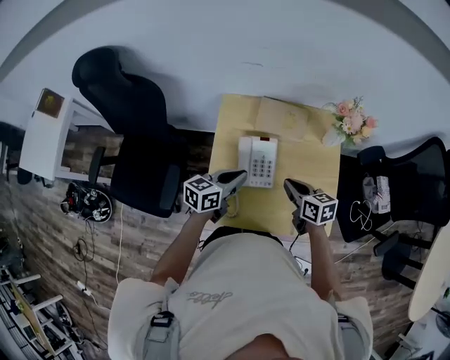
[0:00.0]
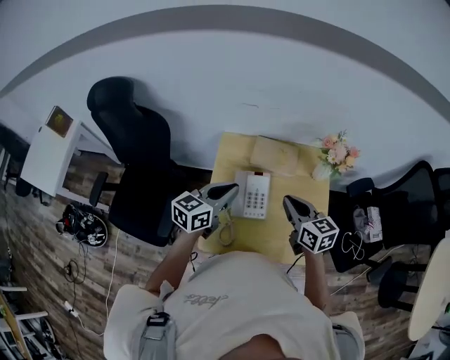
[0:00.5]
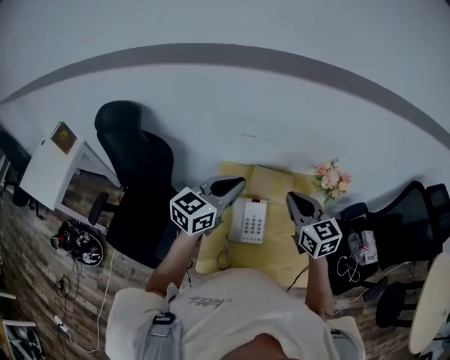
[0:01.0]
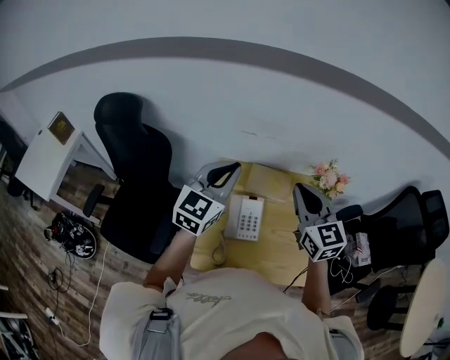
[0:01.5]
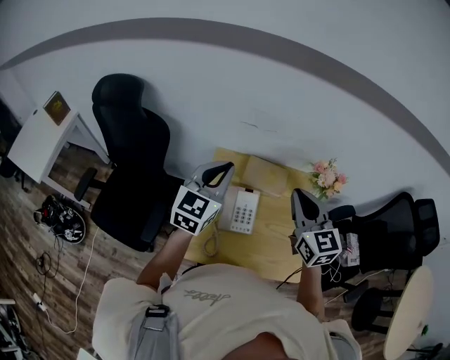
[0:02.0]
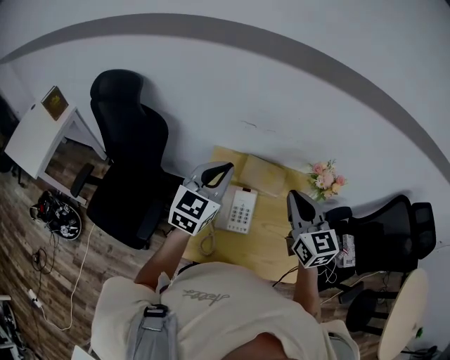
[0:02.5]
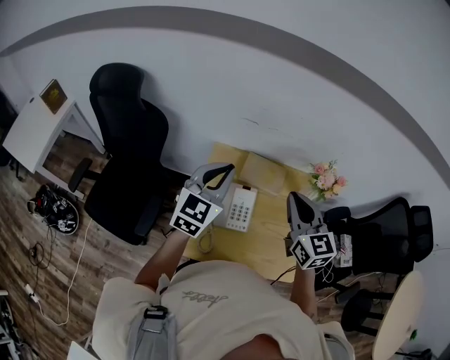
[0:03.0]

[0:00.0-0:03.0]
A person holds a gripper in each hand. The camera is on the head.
0:00.0 to 0:01.5: Both grippers move upward, approximately 30 cm. The right gripper changes its angle by some 50 degrees. The left gripper twists approximately 40 degrees clockwise, seen from behind.
0:01.5 to 0:03.0: The left gripper travels downward by roughly 5 cm.

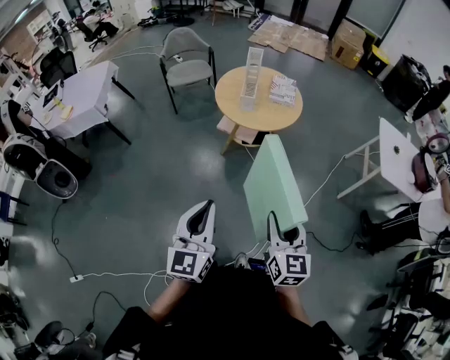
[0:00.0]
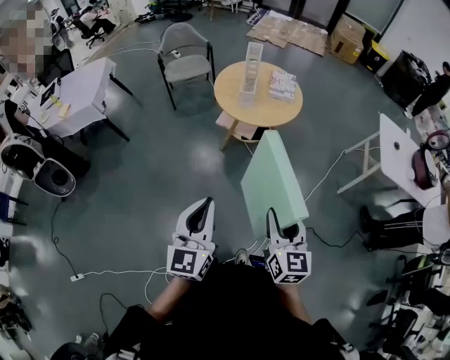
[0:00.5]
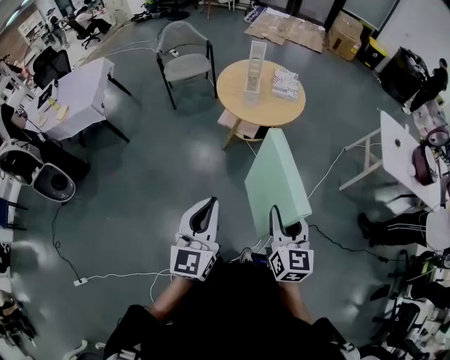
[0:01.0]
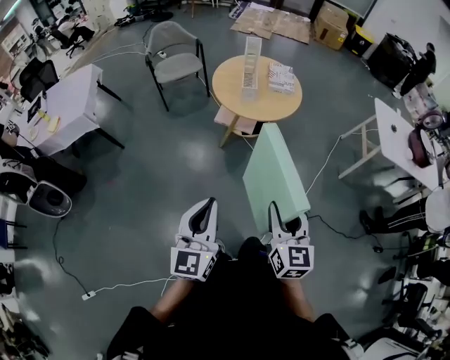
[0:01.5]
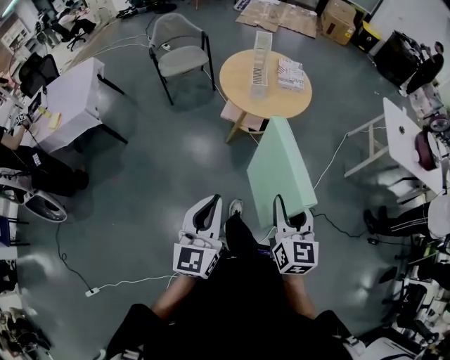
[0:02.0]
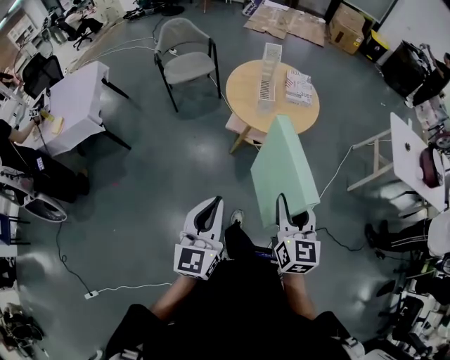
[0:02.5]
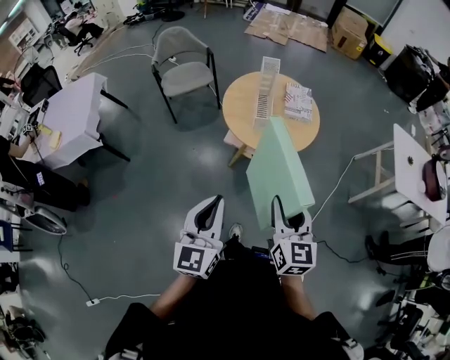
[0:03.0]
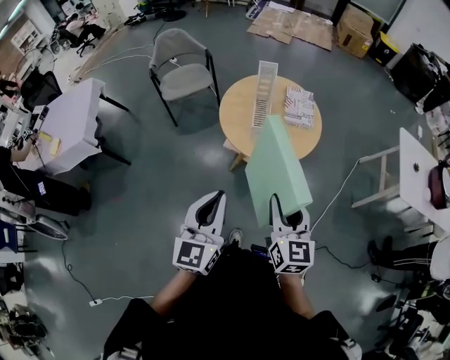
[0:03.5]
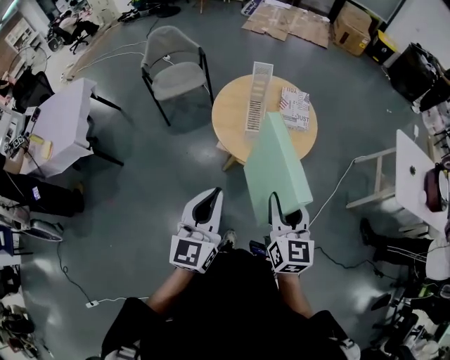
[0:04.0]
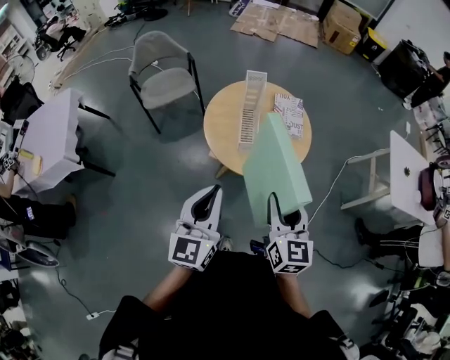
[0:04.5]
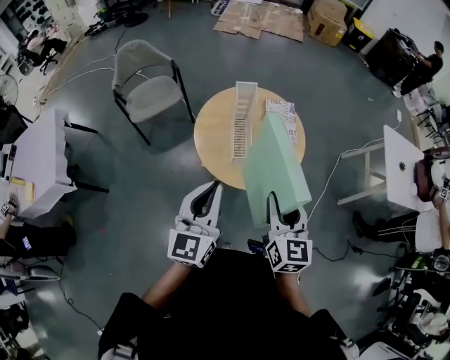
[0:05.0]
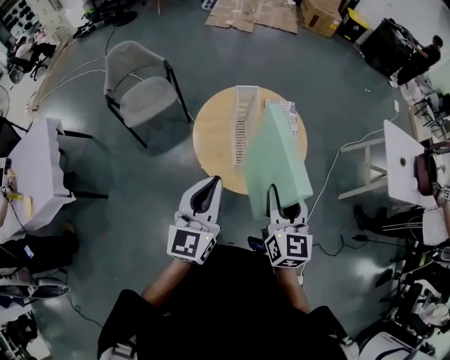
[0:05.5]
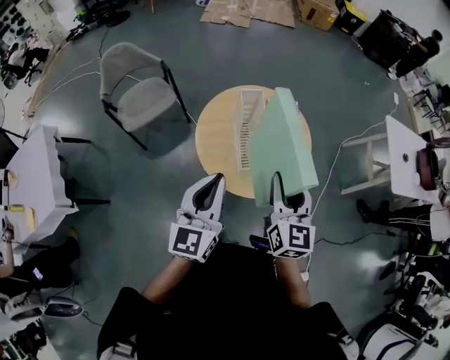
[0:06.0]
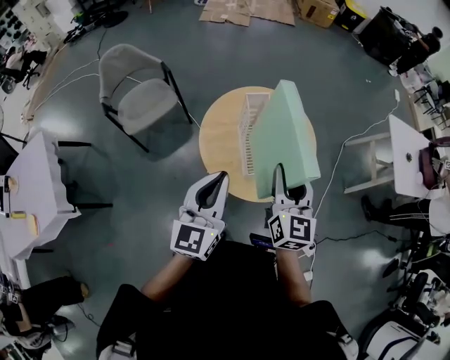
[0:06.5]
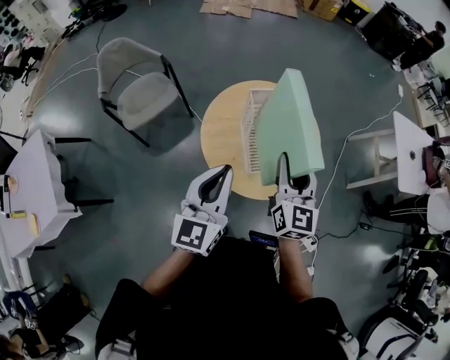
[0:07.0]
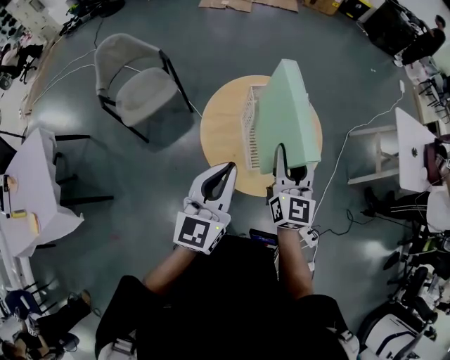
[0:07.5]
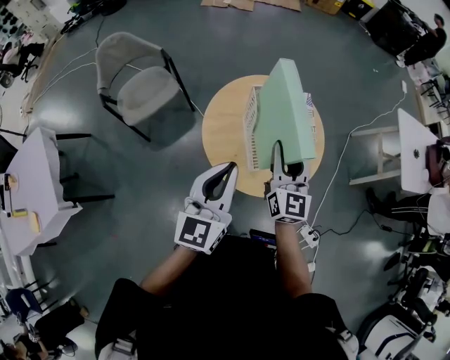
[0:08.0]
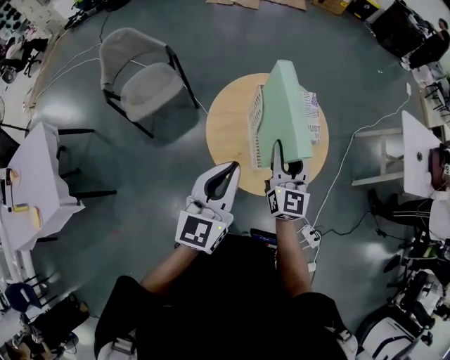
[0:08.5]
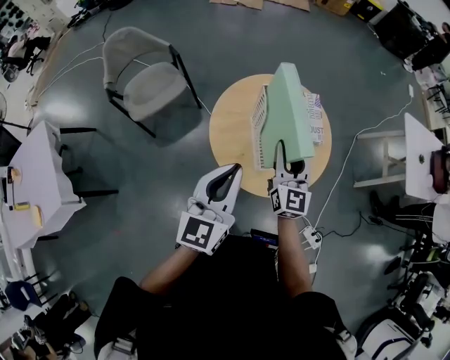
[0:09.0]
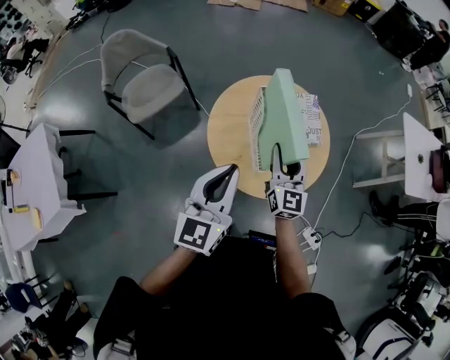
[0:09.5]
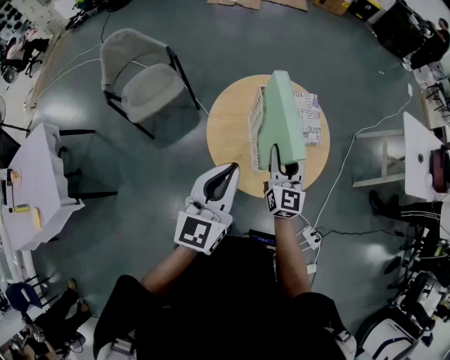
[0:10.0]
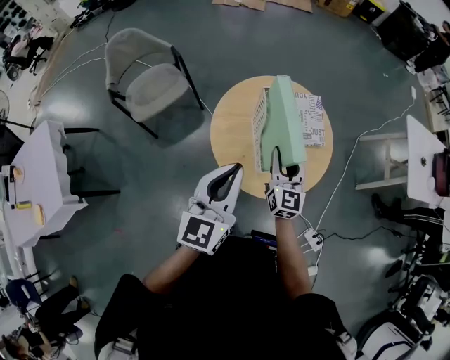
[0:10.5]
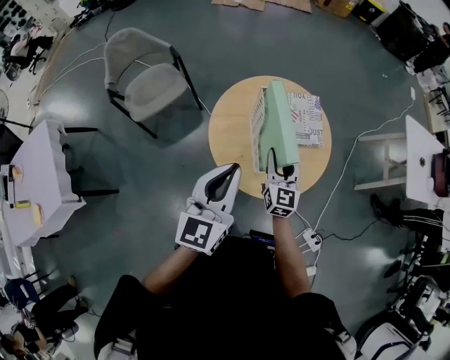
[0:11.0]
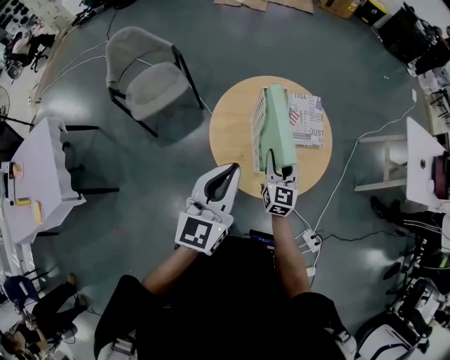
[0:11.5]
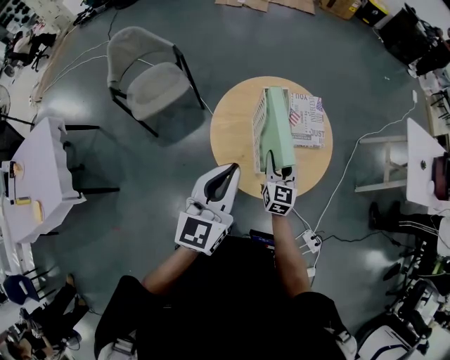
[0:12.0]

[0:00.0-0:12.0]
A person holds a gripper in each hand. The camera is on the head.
0:00.0 to 0:02.0: The two grippers go about 15 cm to the left and forward.
0:02.0 to 0:04.0: The two grippers go about 30 cm forward.
0:04.0 to 0:06.0: Both grippers move forward, some 25 cm.
0:06.0 to 0:08.0: The right gripper heads forward and downward, covering about 15 cm. The left gripper heads forward, covering approximately 5 cm.
0:08.0 to 0:10.0: The right gripper is displaced downward by some 5 cm.
0:10.0 to 0:12.0: The right gripper goes roughly 10 cm downward.

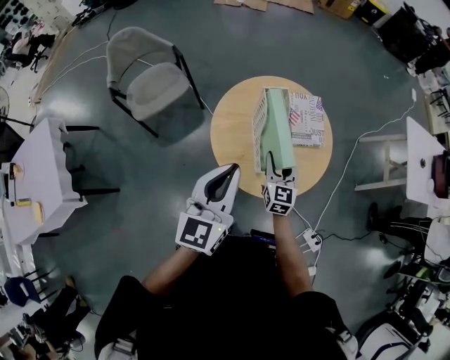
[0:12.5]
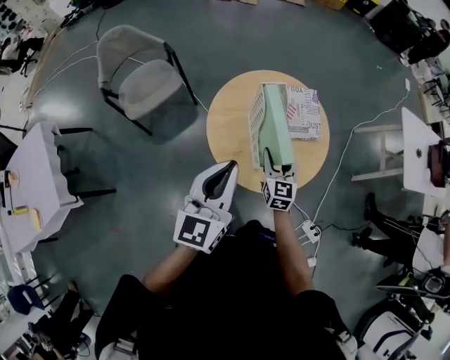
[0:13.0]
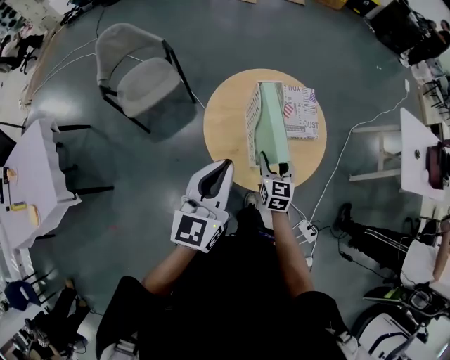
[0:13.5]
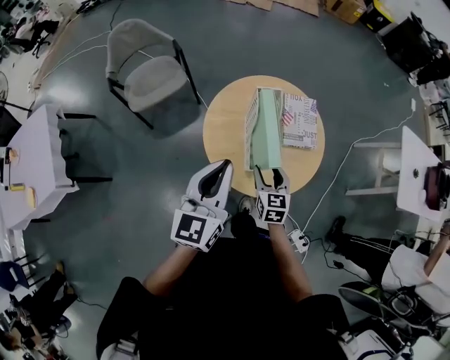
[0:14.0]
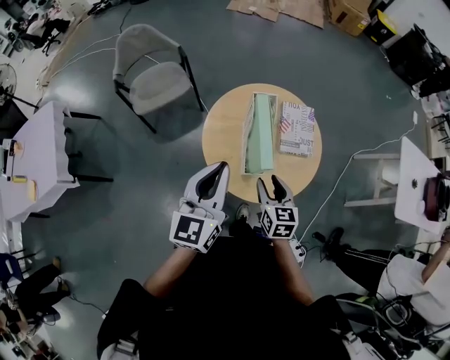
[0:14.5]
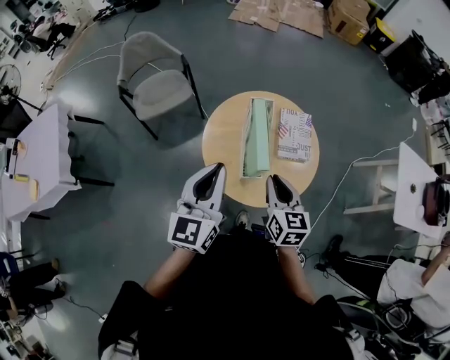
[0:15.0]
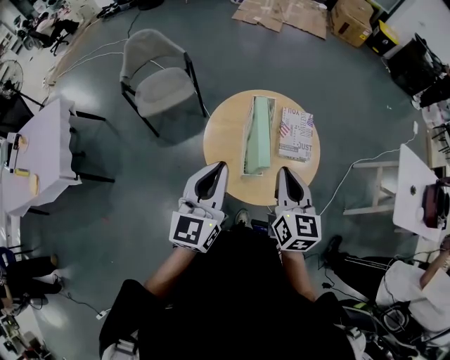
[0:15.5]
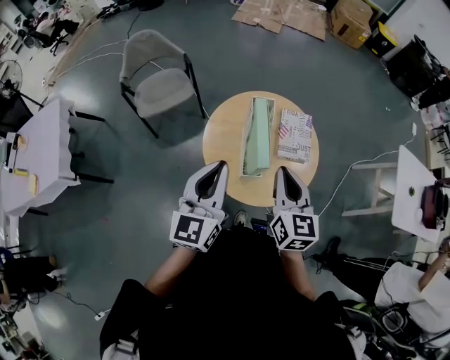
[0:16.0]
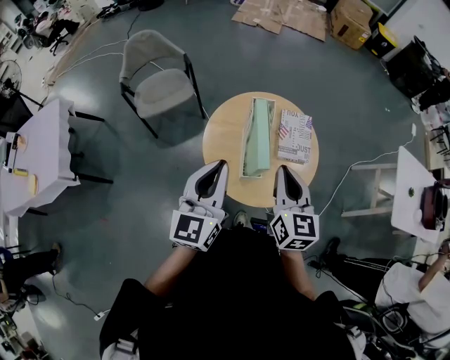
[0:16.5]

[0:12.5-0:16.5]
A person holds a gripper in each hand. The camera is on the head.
0:12.5 to 0:14.5: The right gripper travels backward by about 5 cm, and changes its angle by about 20 degrees.
0:14.5 to 0:16.5: The right gripper moves upward, roughly 15 cm, and closes.

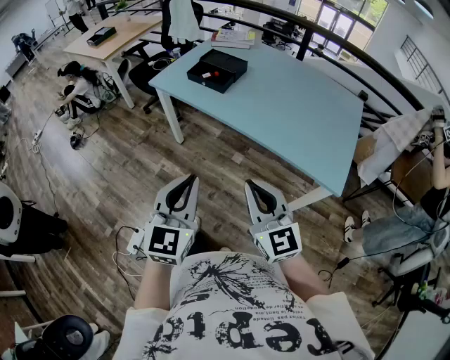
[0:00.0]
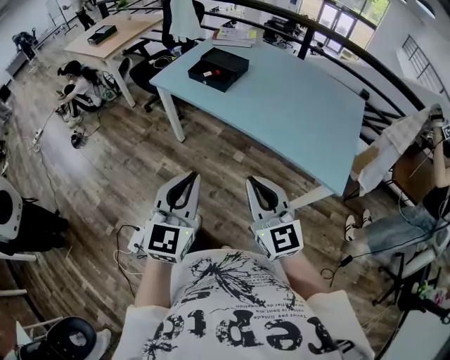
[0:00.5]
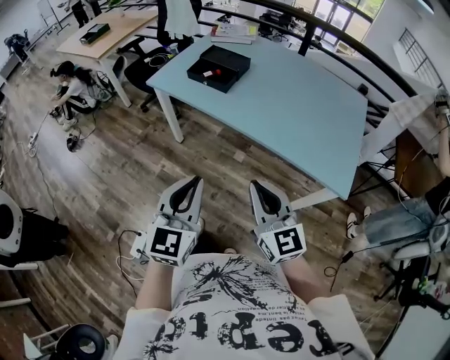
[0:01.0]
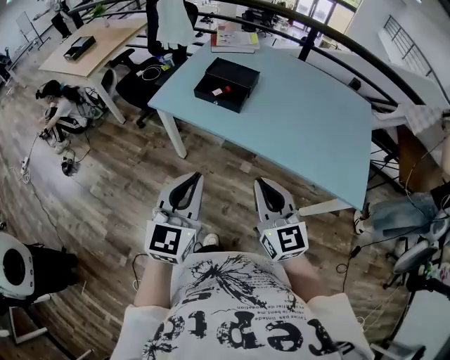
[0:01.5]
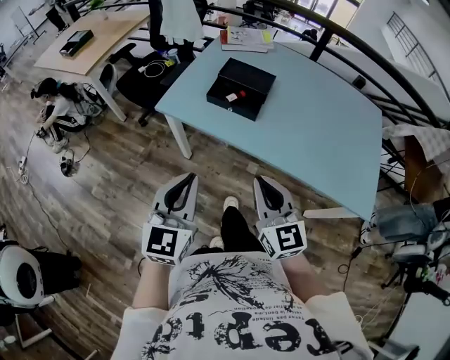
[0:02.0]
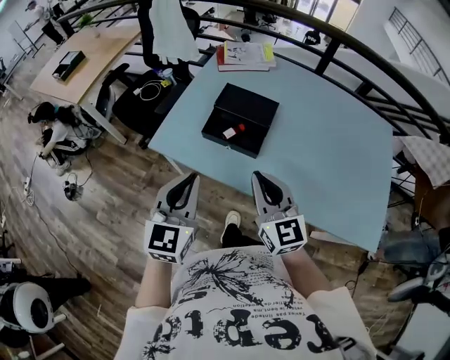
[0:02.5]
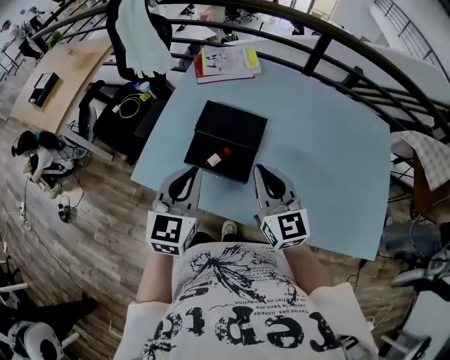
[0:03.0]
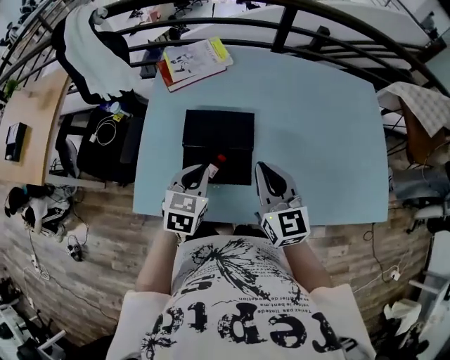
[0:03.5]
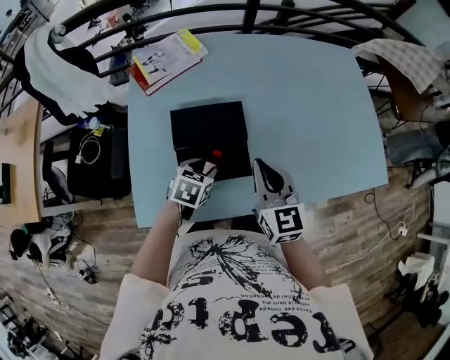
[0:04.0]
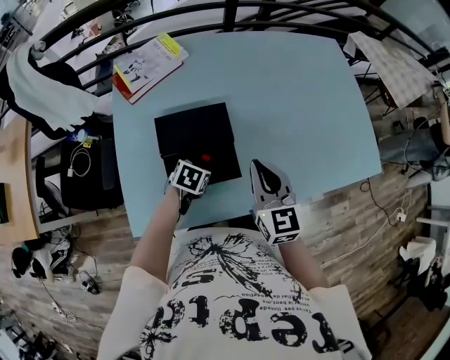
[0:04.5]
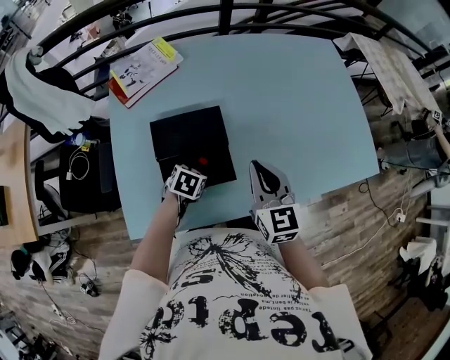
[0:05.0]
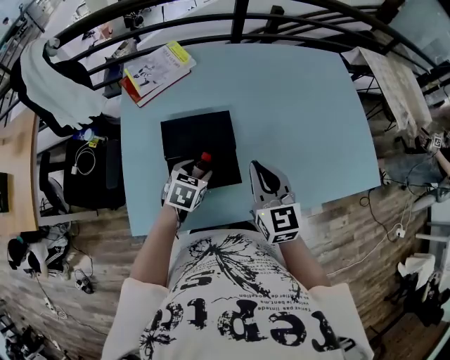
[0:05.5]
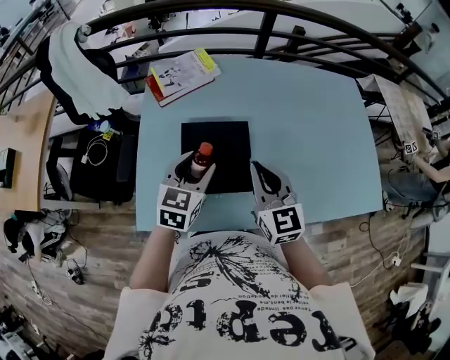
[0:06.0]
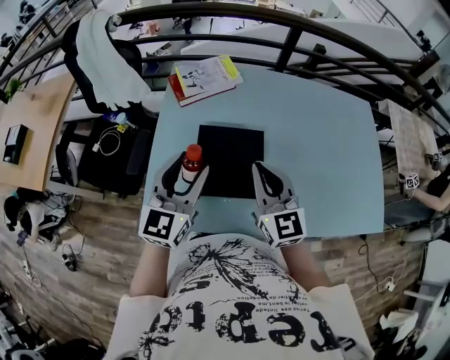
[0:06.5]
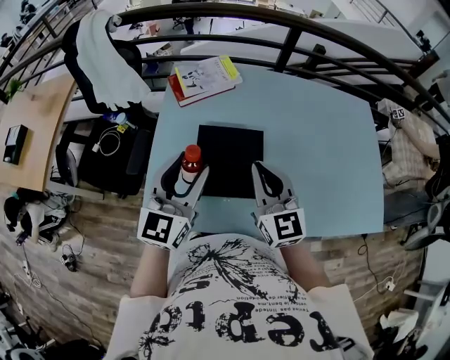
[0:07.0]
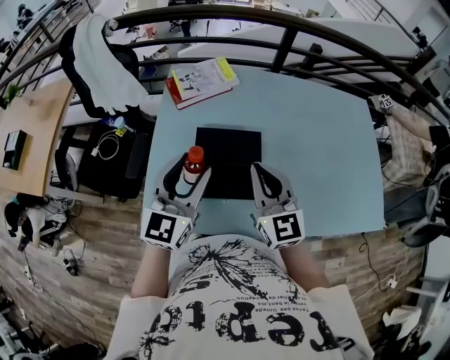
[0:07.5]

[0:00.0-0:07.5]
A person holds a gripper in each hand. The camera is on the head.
0:00.0 to 0:02.0: The grippers both shift forward and to the left by about 35 cm.
0:02.0 to 0:04.0: The left gripper moves about 50 cm, tips its fingers downward by about 40 degrees, and opens its fingers. The right gripper moves about 40 cm, and rotates about 40 degrees.
0:04.0 to 0:05.5: The left gripper travels downward and back again, roughly 5 cm each way.
0:05.5 to 0:07.5: The left gripper shifts about 25 cm upward, and tips its fingers upward by about 50 degrees. Meanwhile the right gripper is displaced to the left and upward by roughly 10 cm.
